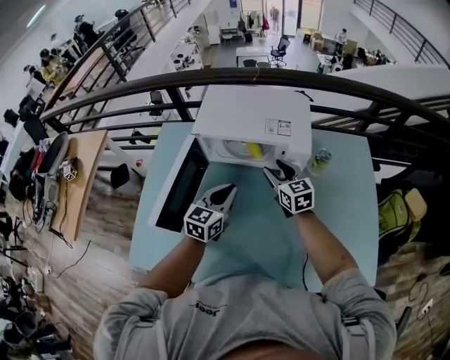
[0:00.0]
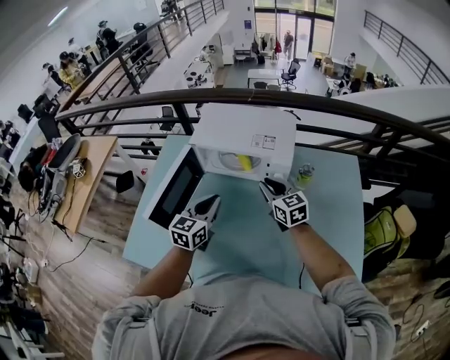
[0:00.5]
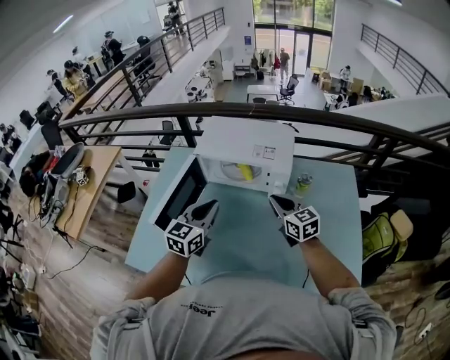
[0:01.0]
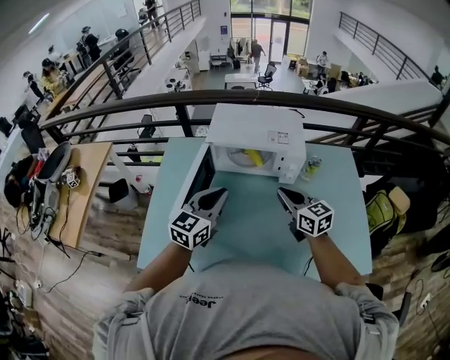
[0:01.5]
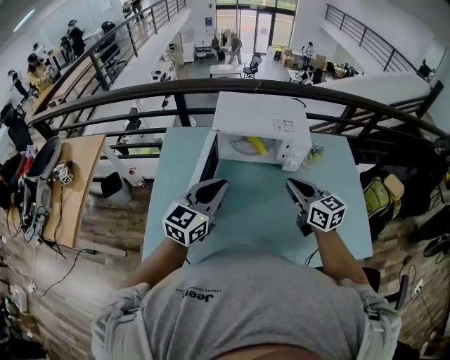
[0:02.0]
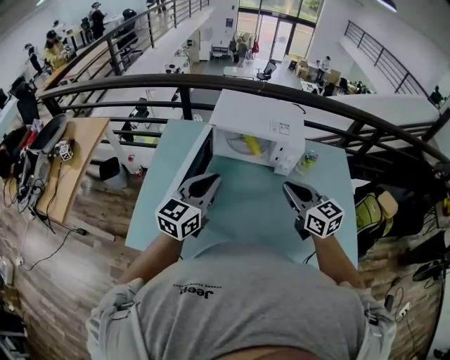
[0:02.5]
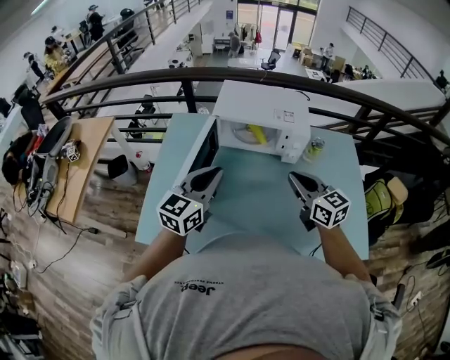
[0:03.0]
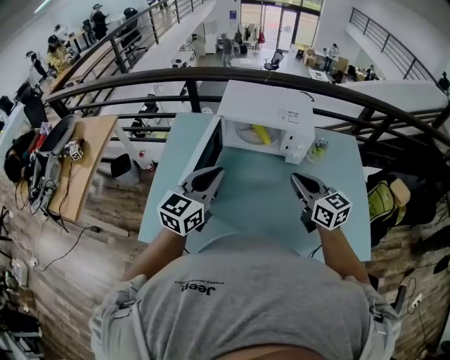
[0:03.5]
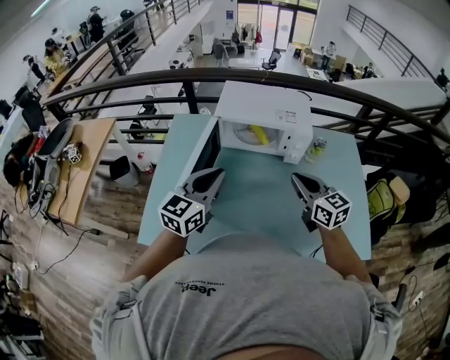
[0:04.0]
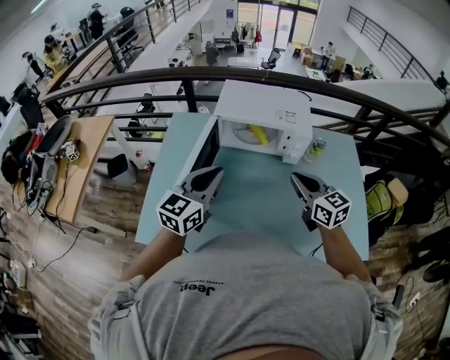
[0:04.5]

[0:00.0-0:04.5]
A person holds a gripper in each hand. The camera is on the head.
0:00.0 to 0:02.0: The left gripper shifts approximately 20 cm upward, to the left and backward. Meanwhile the right gripper goes approximately 20 cm backward and upward, and closes.
0:02.0 to 0:04.5: The grippers move only a little.

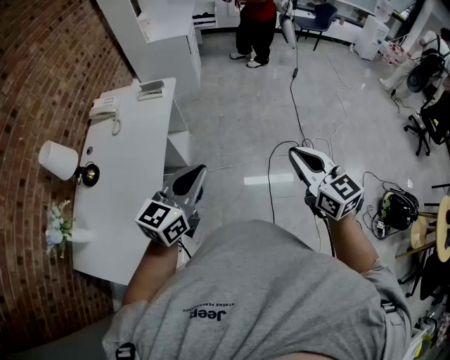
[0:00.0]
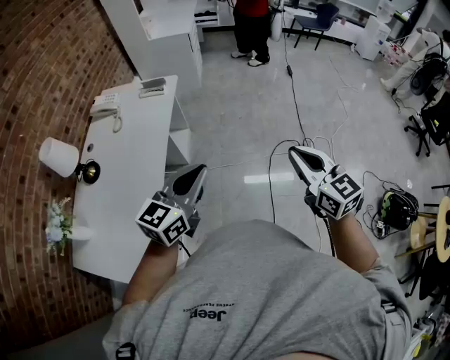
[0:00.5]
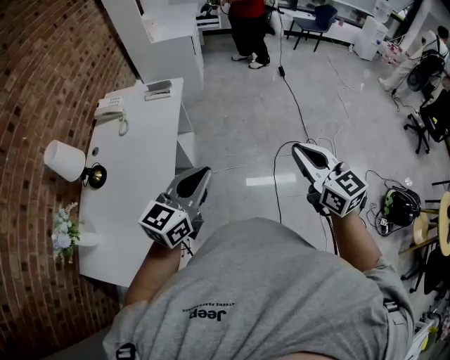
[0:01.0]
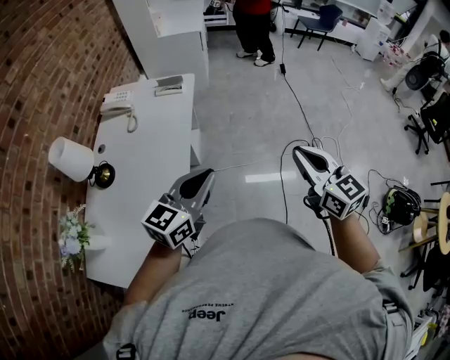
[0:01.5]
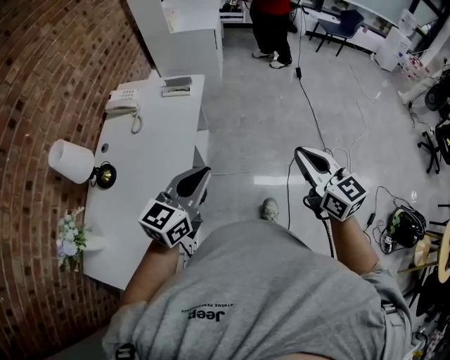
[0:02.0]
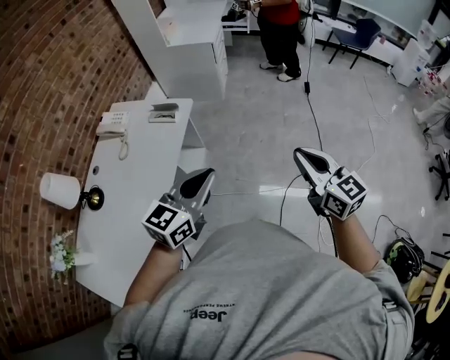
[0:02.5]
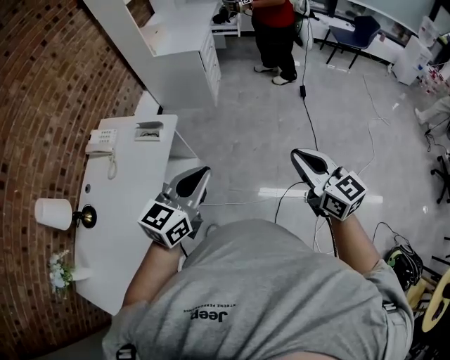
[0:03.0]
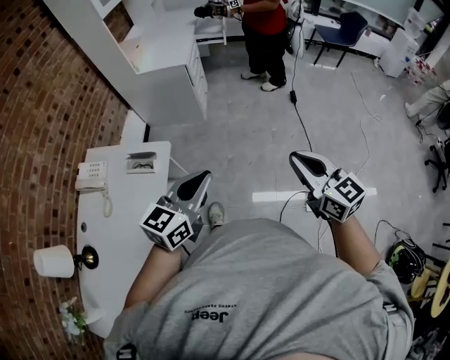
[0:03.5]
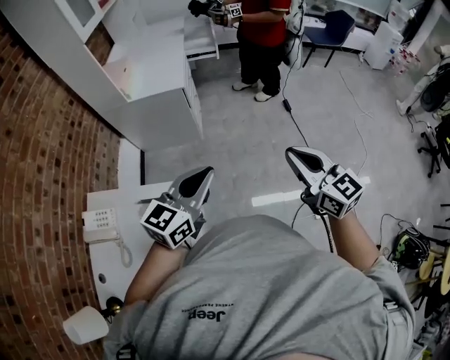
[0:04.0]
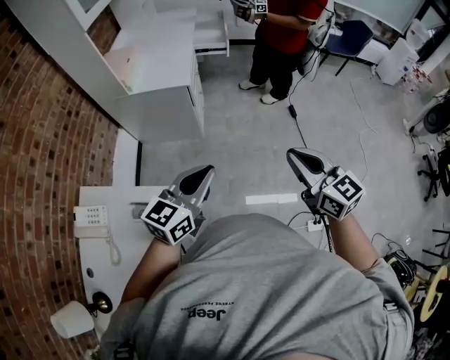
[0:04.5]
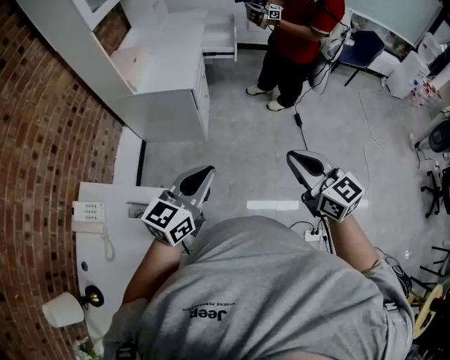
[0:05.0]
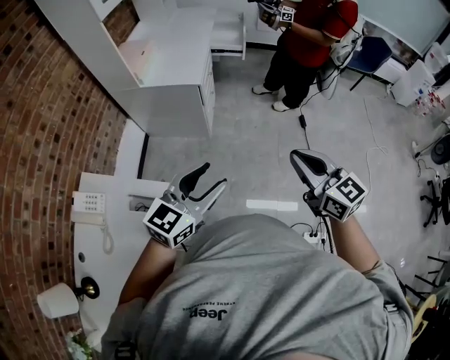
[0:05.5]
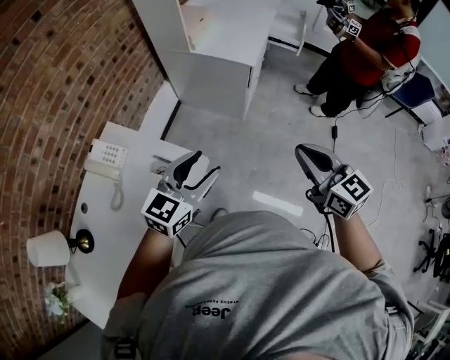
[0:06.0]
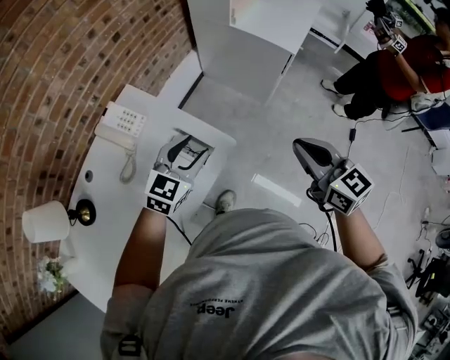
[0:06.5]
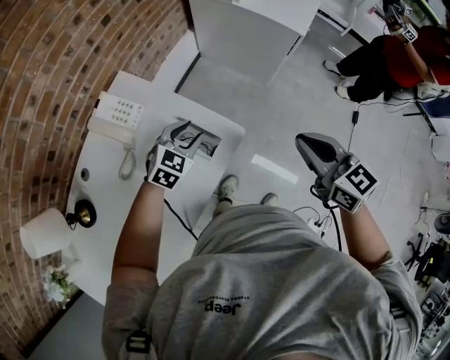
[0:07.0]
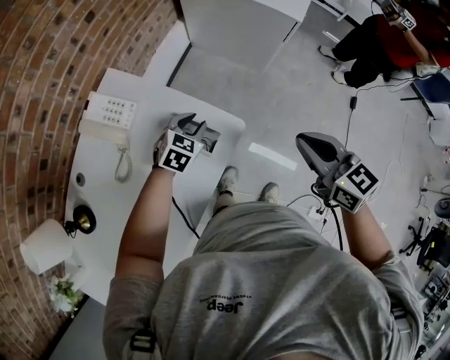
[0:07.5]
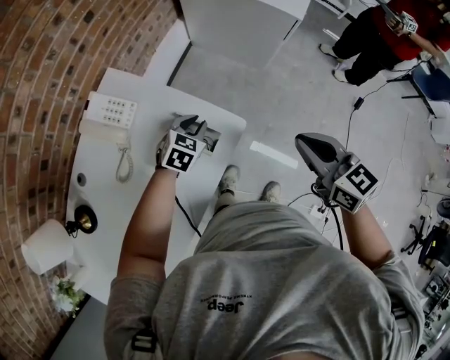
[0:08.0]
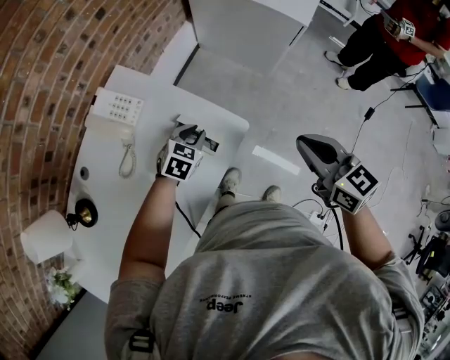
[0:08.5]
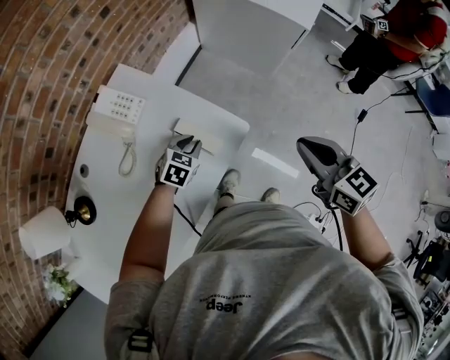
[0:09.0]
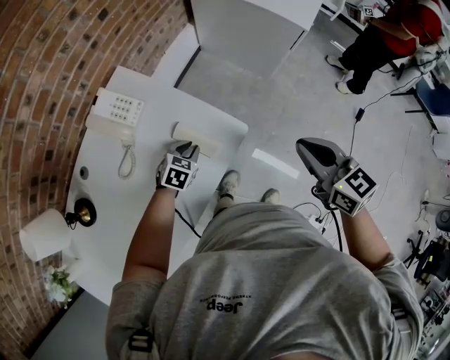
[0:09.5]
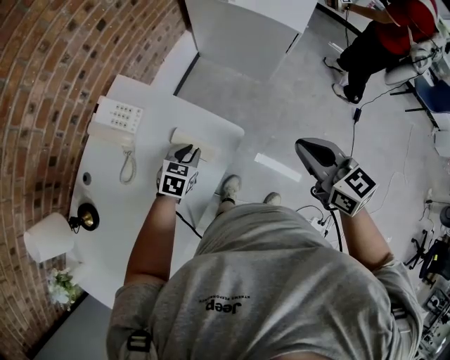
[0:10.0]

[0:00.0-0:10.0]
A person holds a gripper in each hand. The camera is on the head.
0:00.0 to 0:02.0: The two grippers go roughly 15 cm to the left and forward.
0:02.0 to 0:04.0: The pair of grippers is taken forward, approximately 60 cm.
0:04.0 to 0:06.0: The left gripper shifts by some 10 cm, swivels about 30 degrees, and opens up, while the right gripper changes place by roughly 15 cm, and swivels about 30 degrees.
0:06.0 to 0:08.0: The right gripper travels to the left and downward by roughly 20 cm. The left gripper goes some 30 cm downward and to the left, tips its fingers downward by some 30 degrees, and closes up.
0:08.0 to 0:10.0: The left gripper shifts about 5 cm backward.

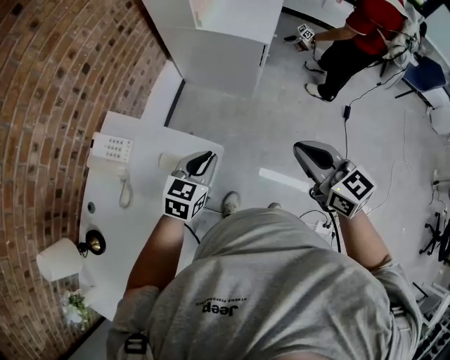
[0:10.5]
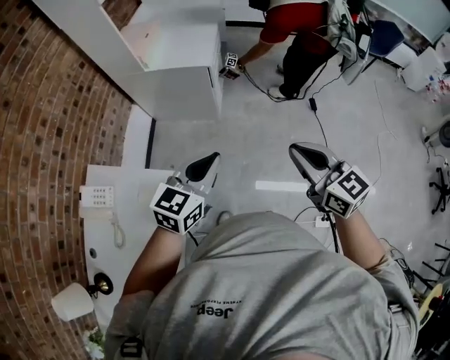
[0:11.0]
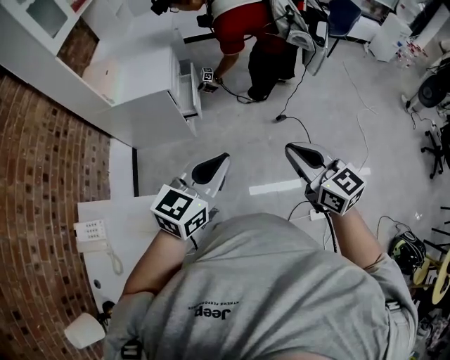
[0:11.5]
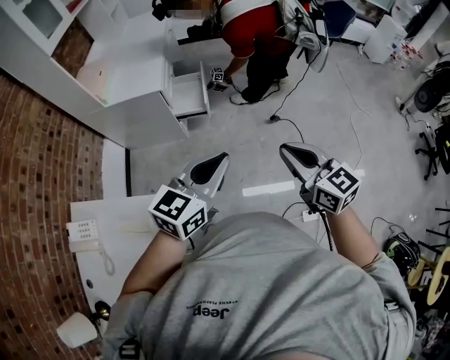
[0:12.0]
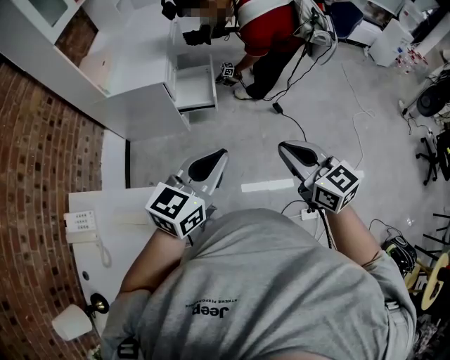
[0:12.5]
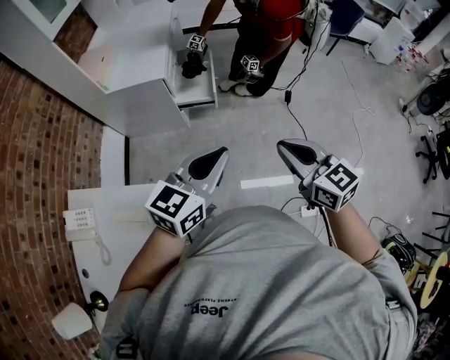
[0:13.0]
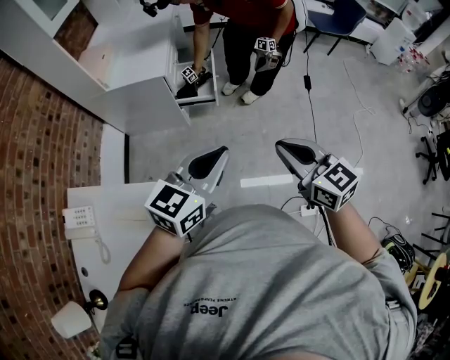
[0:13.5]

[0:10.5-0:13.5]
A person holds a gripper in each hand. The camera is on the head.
0:10.5 to 0:12.0: The right gripper shifts by roughly 25 cm, and swivels some 30 degrees. The left gripper ends up some 35 cm from where it was, and rotates about 40 degrees.
0:12.0 to 0:13.5: The grippers stay close to where they were, moving slightly.

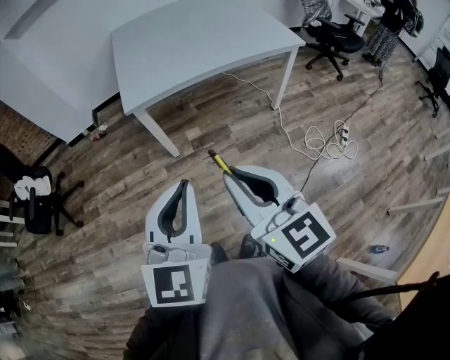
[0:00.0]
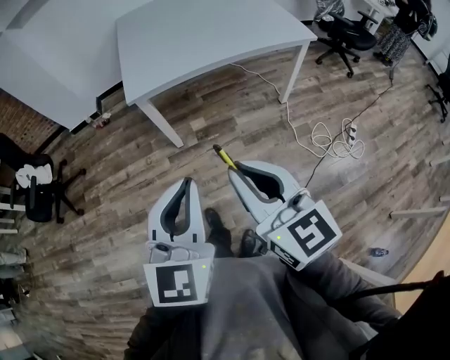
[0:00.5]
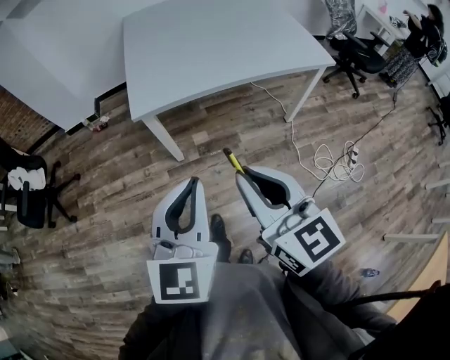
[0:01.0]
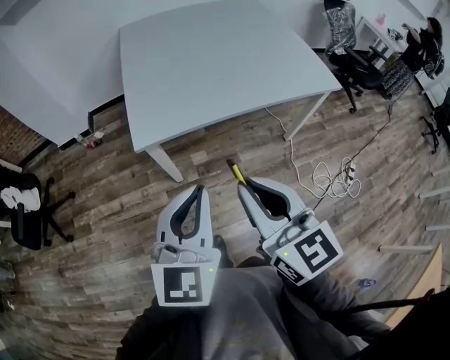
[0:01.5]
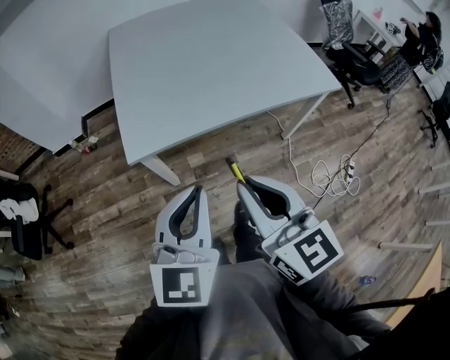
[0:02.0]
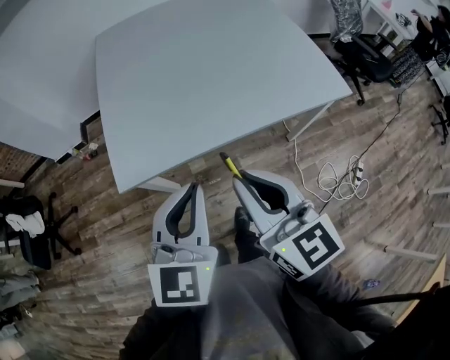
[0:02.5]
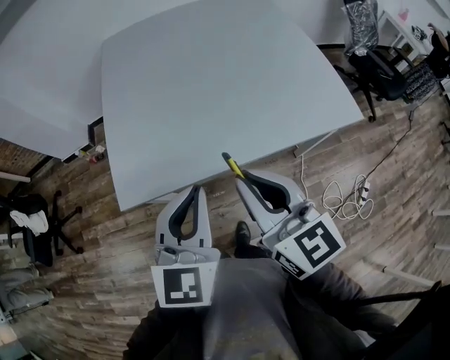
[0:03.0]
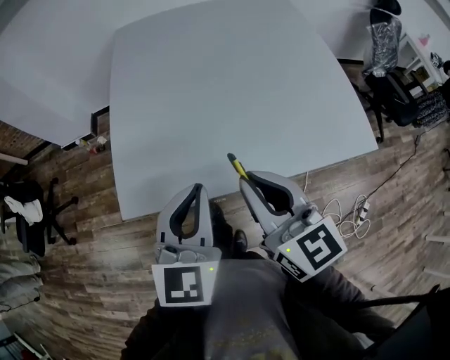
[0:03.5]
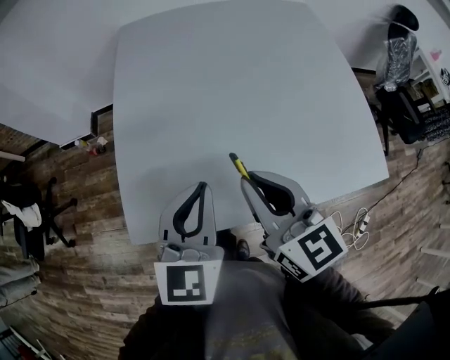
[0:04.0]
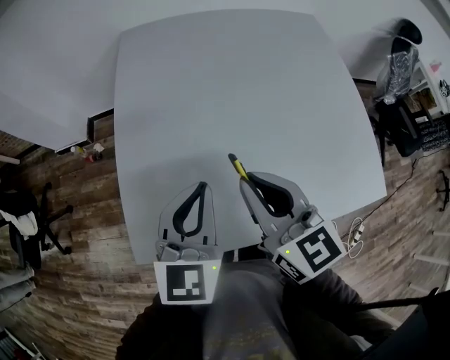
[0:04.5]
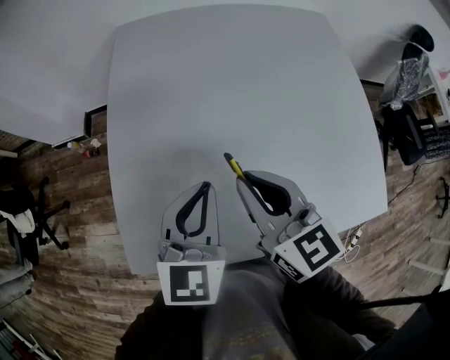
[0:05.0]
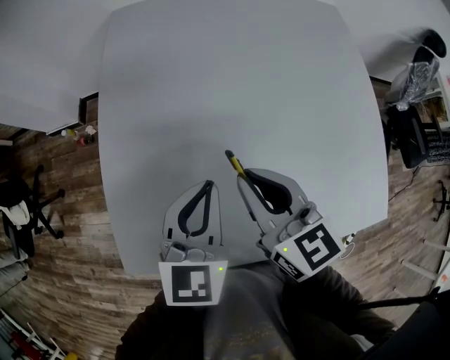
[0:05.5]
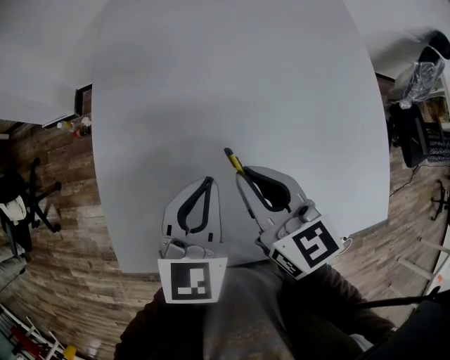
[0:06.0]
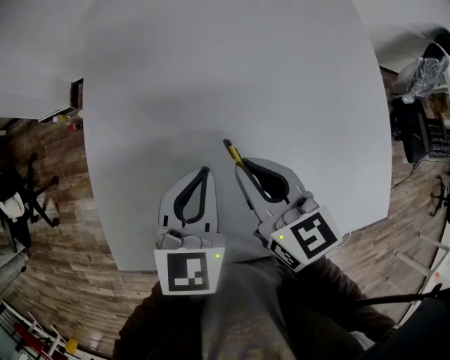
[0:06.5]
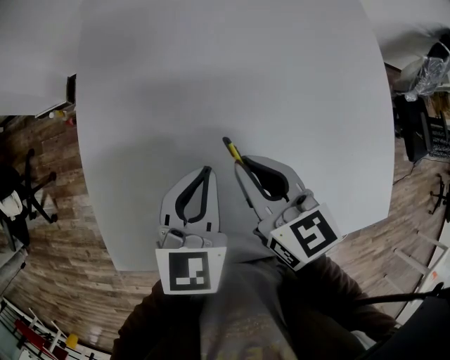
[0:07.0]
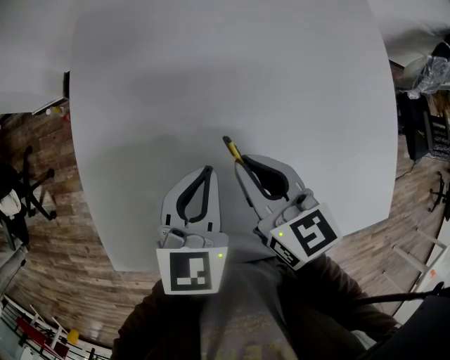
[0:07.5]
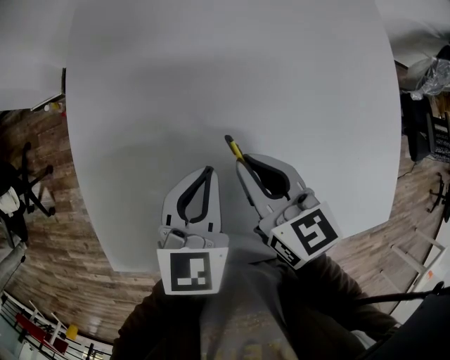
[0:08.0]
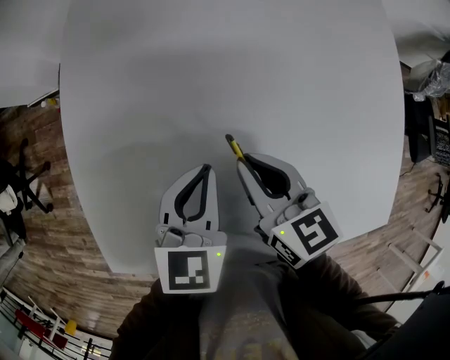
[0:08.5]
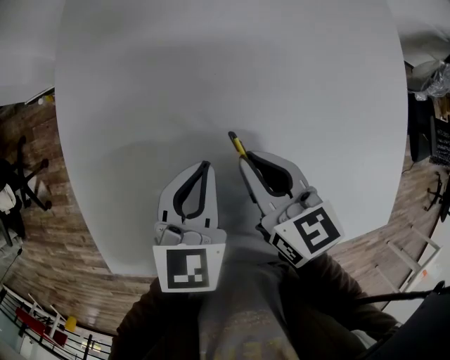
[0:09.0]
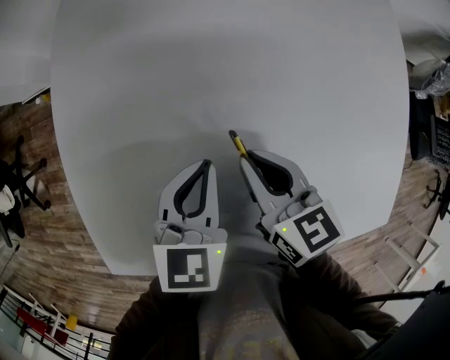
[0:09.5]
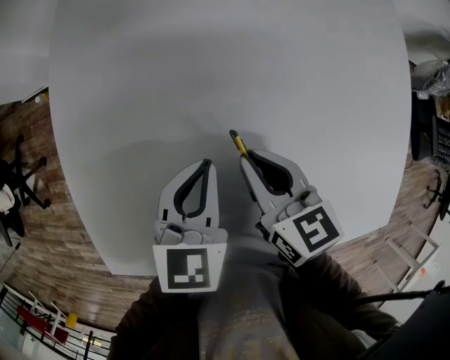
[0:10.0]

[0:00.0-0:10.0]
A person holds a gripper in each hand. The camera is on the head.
0:00.0 to 0:02.0: Both grippers travel together forward, about 30 cm.
0:02.0 to 0:04.0: The two grippers go roughly 35 cm forward.
0:04.0 to 0:06.0: The two grippers go some 20 cm forward and downward.
0:06.0 to 0:08.0: The grippers both shift downward by approximately 10 cm.
0:08.0 to 0:10.0: The grippers make only small movements.
